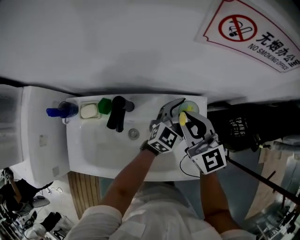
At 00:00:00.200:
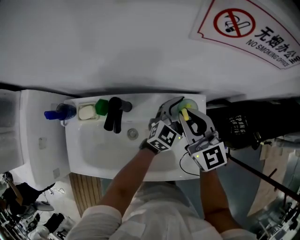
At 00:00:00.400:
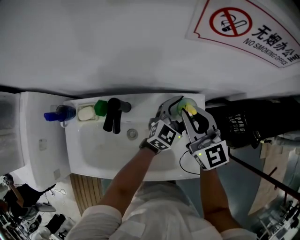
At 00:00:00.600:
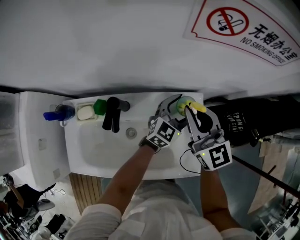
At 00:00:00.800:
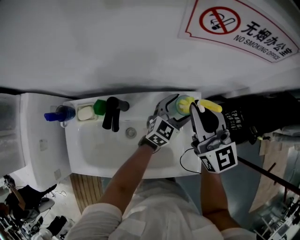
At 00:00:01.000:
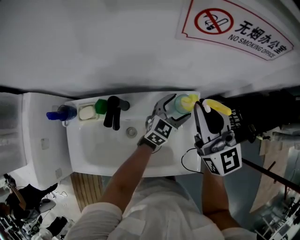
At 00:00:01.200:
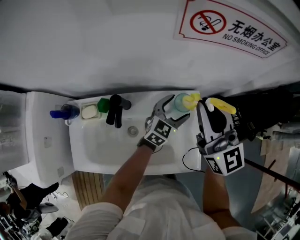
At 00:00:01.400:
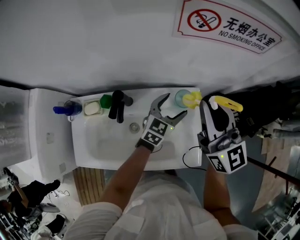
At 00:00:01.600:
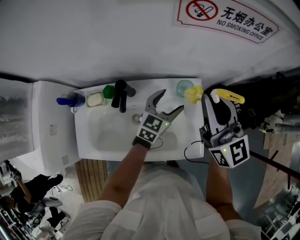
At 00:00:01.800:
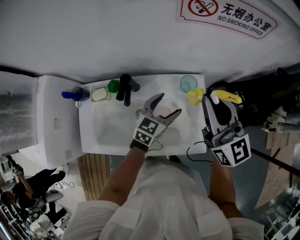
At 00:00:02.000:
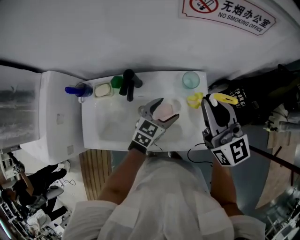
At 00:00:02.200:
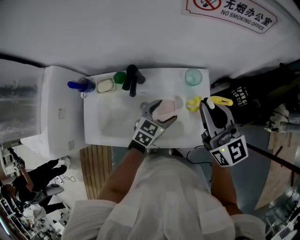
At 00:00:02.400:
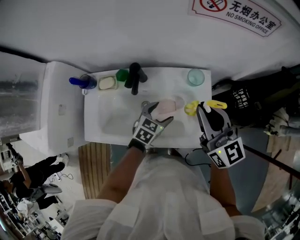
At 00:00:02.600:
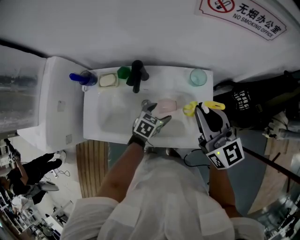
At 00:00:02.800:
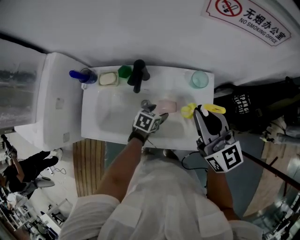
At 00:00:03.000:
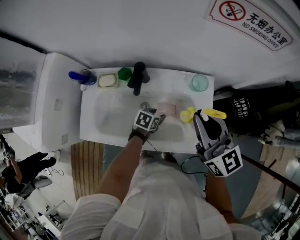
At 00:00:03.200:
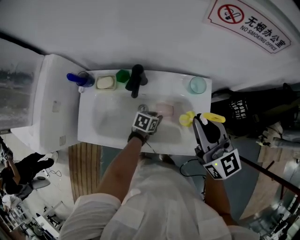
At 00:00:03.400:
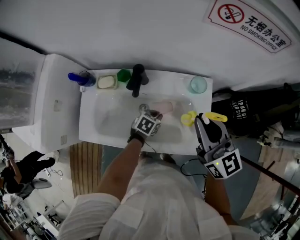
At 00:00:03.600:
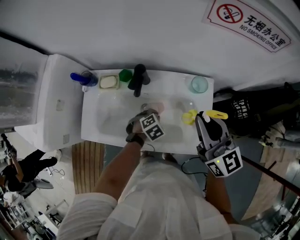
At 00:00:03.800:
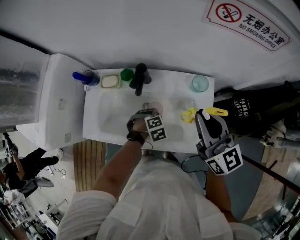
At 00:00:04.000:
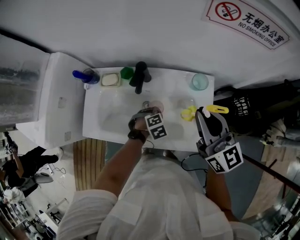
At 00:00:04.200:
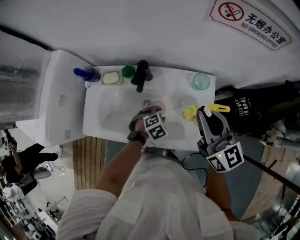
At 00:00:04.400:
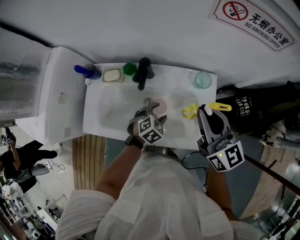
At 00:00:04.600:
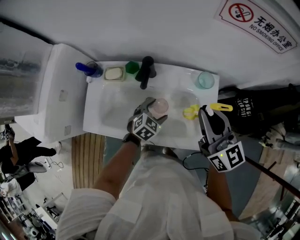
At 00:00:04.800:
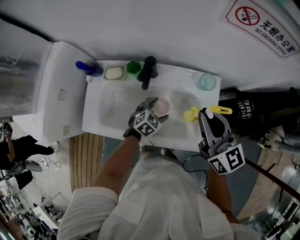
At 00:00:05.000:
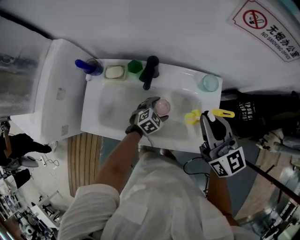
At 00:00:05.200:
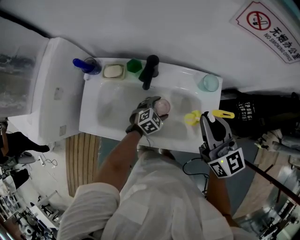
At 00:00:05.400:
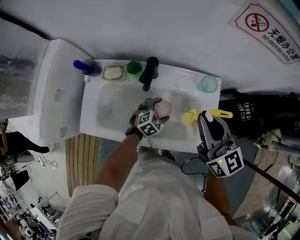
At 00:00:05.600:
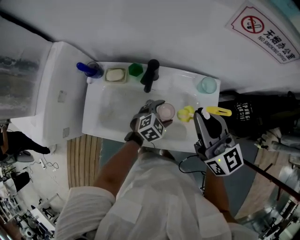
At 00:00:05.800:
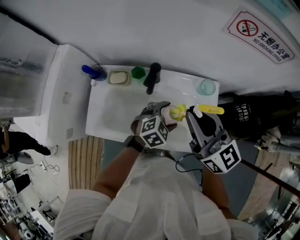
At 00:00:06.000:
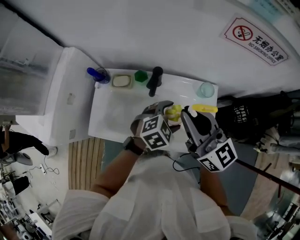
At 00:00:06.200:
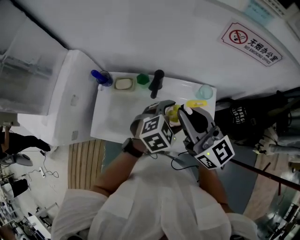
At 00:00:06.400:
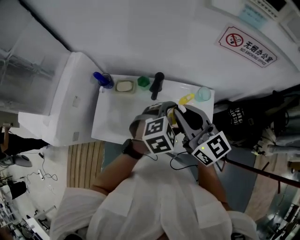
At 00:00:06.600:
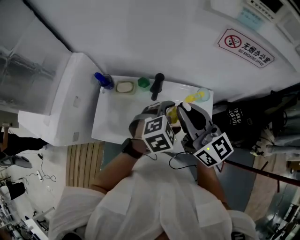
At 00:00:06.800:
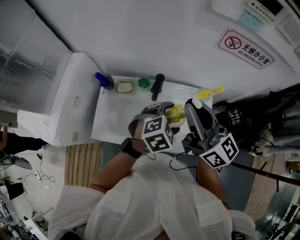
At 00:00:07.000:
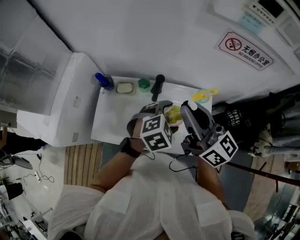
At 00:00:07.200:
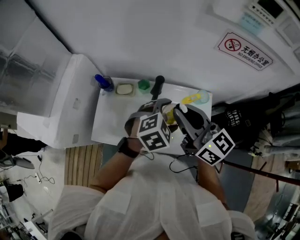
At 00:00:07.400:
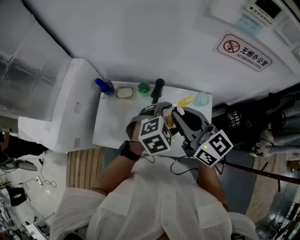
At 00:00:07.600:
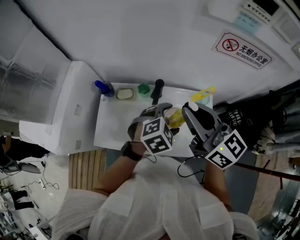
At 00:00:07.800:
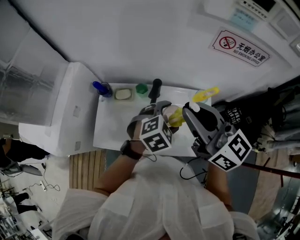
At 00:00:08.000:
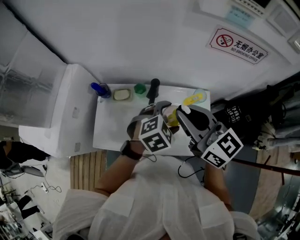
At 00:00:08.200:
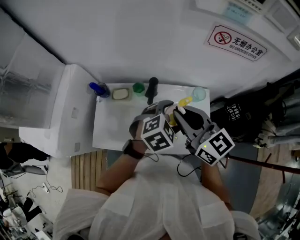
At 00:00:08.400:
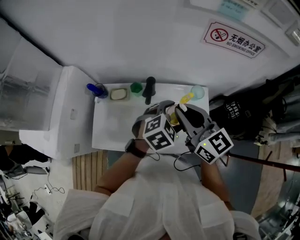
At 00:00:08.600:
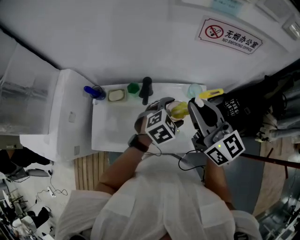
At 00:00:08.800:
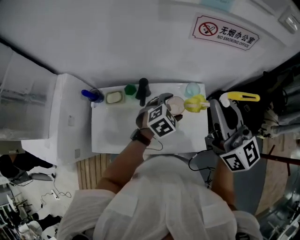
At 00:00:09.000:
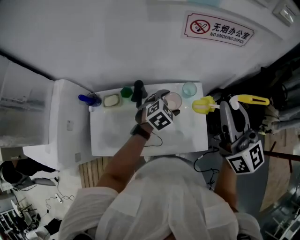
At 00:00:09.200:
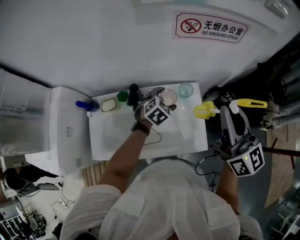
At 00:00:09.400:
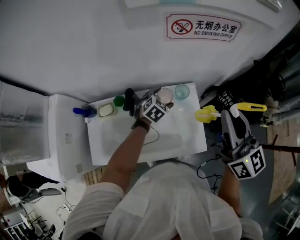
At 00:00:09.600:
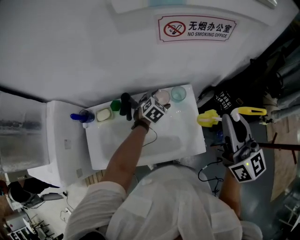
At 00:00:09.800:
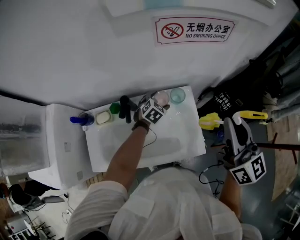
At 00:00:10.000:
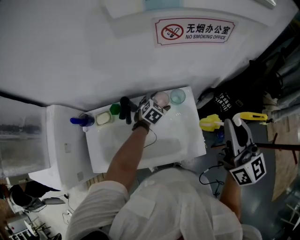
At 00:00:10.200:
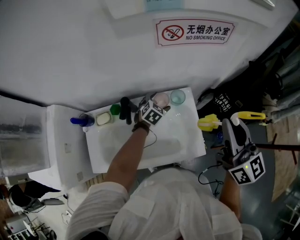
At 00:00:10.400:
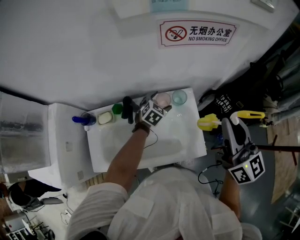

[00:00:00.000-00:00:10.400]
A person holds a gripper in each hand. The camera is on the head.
00:00:00.000 to 00:00:01.400: The right gripper moves upward and to the right, roughly 15 cm, and changes its angle by roughly 20 degrees.
00:00:01.400 to 00:00:03.000: The left gripper moves downward, backward and to the left, some 25 cm, points its fingers some 30 degrees further downward, and closes. The right gripper is displaced backward and to the left by roughly 10 cm.
00:00:03.000 to 00:00:04.400: The left gripper heads upward, covering approximately 5 cm, turns by approximately 40 degrees, and closes and opens again.
00:00:04.400 to 00:00:06.000: The left gripper goes approximately 15 cm upward, and opens its fingers, while the right gripper is displaced to the left and upward by some 10 cm.
00:00:06.000 to 00:00:07.400: The right gripper moves about 5 cm, while the left gripper shifts approximately 10 cm upward.
00:00:07.400 to 00:00:09.000: The left gripper goes about 15 cm downward, forward and to the right. Meanwhile the right gripper heads to the right, covering approximately 20 cm, and changes its angle by some 30 degrees.
00:00:09.000 to 00:00:10.400: The left gripper shifts about 10 cm forward and downward; the right gripper moves to the right, some 5 cm.

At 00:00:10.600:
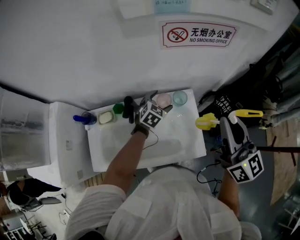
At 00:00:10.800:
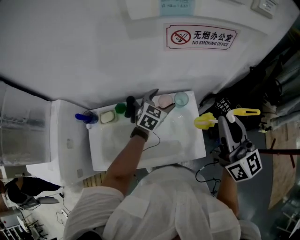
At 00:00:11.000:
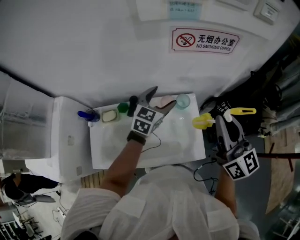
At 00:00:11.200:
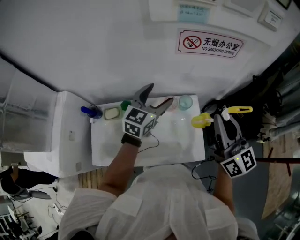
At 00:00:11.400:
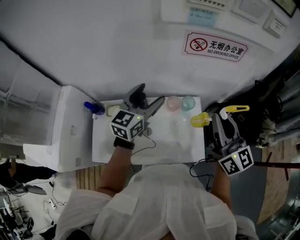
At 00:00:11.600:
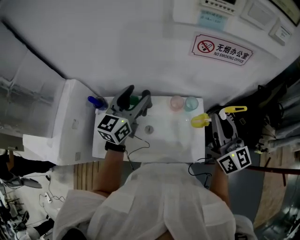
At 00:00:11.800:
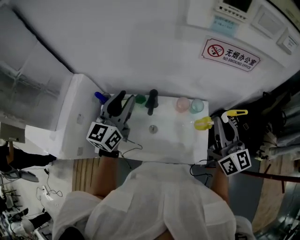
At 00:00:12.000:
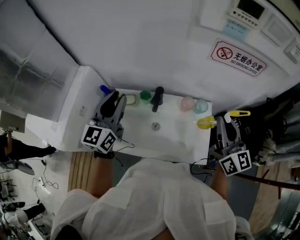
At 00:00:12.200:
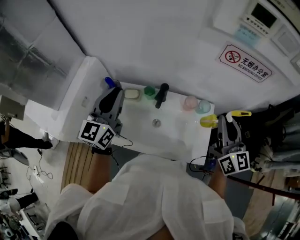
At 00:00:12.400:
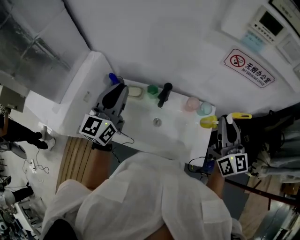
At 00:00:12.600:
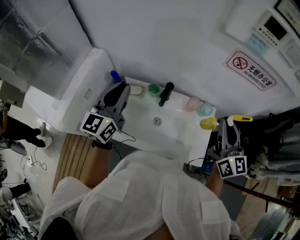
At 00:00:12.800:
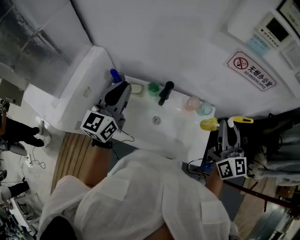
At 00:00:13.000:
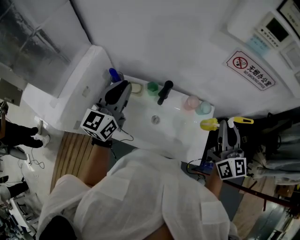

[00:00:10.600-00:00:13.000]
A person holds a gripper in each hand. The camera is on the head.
00:00:10.600 to 00:00:11.800: The right gripper shifts some 5 cm to the left. The left gripper moves upward, to the left and backward, some 40 cm, points its fingers approximately 50 degrees further upward, and closes its fingers.
00:00:11.800 to 00:00:13.000: The left gripper is displaced to the left by some 5 cm.

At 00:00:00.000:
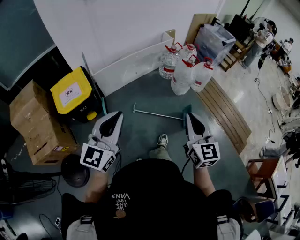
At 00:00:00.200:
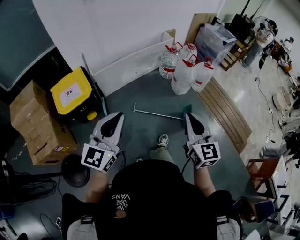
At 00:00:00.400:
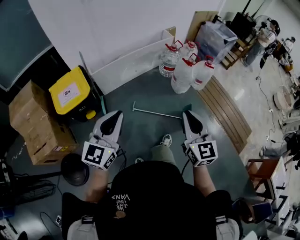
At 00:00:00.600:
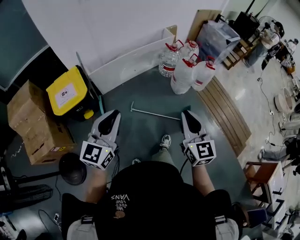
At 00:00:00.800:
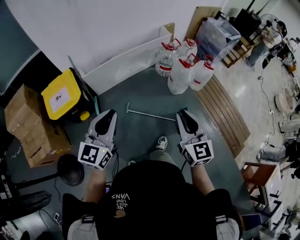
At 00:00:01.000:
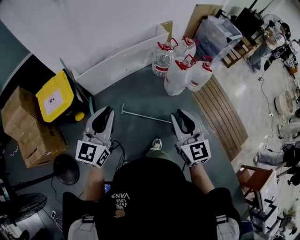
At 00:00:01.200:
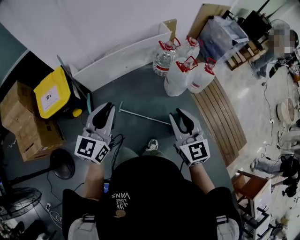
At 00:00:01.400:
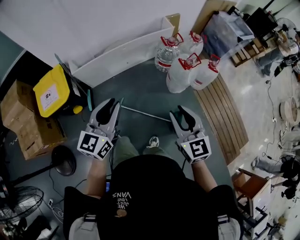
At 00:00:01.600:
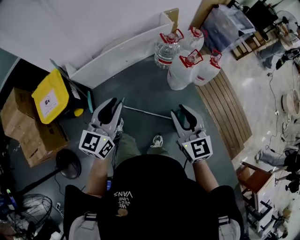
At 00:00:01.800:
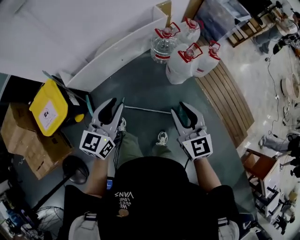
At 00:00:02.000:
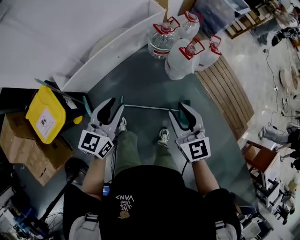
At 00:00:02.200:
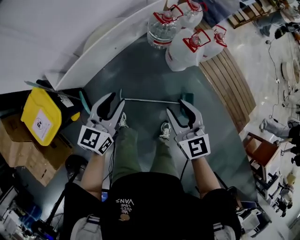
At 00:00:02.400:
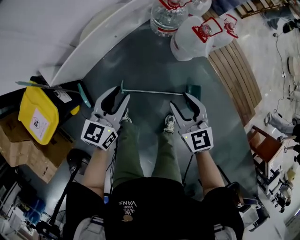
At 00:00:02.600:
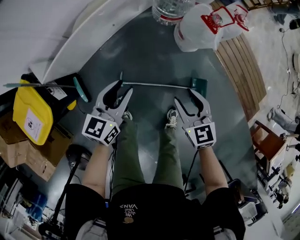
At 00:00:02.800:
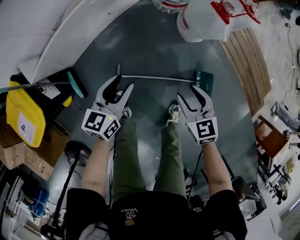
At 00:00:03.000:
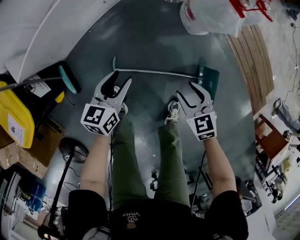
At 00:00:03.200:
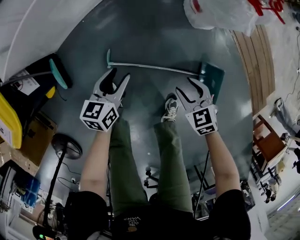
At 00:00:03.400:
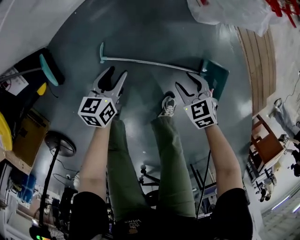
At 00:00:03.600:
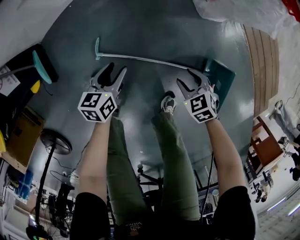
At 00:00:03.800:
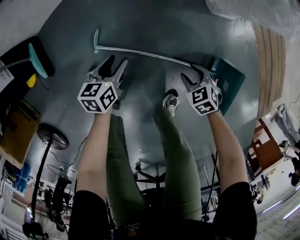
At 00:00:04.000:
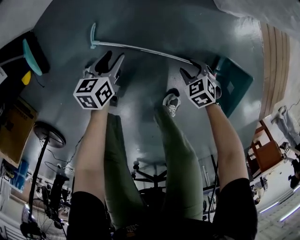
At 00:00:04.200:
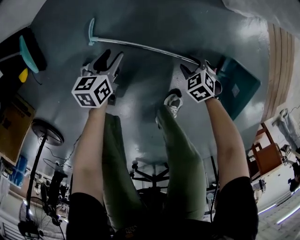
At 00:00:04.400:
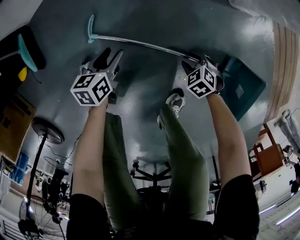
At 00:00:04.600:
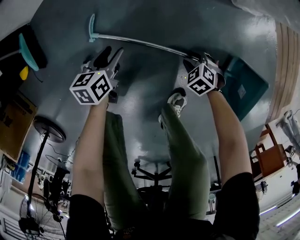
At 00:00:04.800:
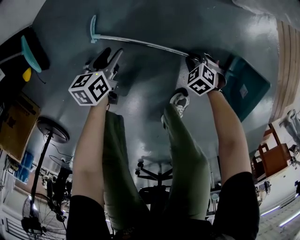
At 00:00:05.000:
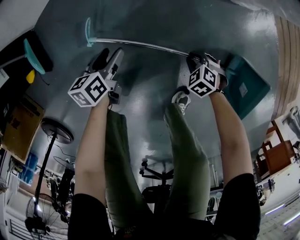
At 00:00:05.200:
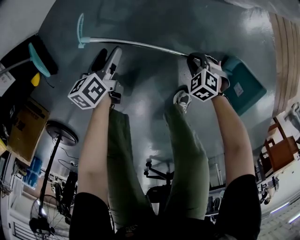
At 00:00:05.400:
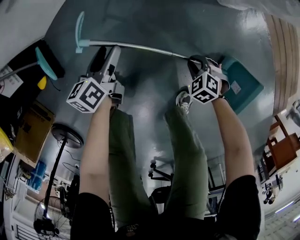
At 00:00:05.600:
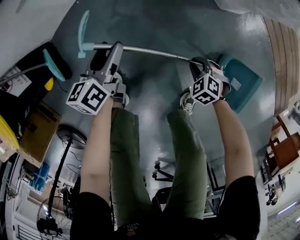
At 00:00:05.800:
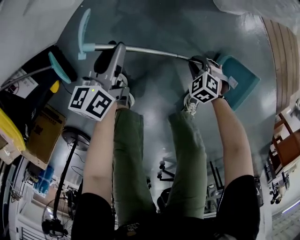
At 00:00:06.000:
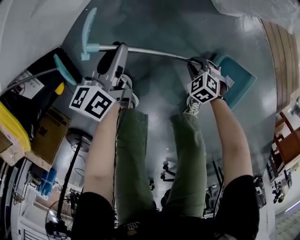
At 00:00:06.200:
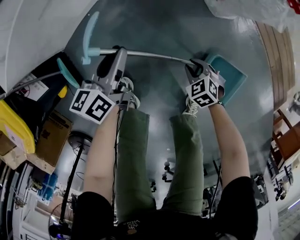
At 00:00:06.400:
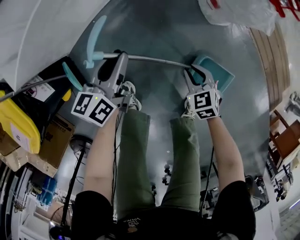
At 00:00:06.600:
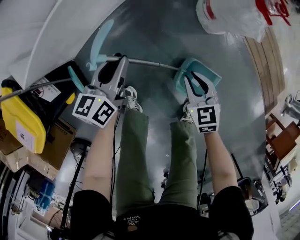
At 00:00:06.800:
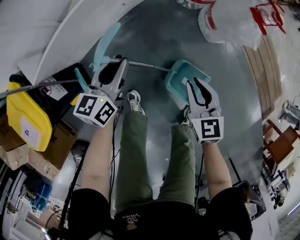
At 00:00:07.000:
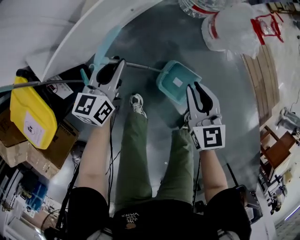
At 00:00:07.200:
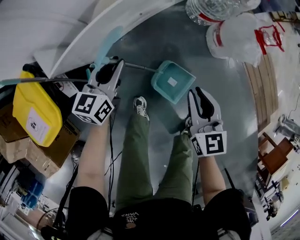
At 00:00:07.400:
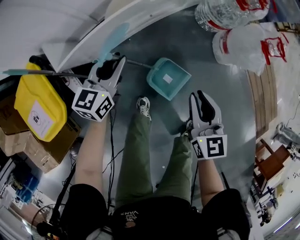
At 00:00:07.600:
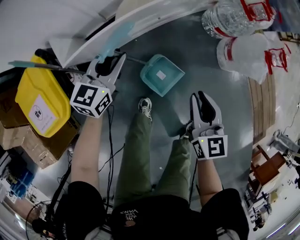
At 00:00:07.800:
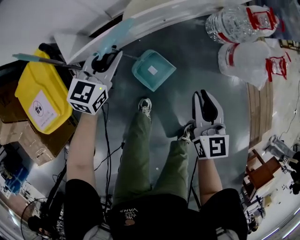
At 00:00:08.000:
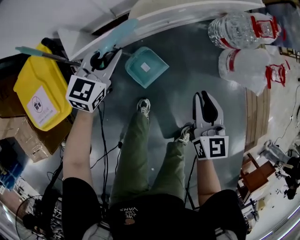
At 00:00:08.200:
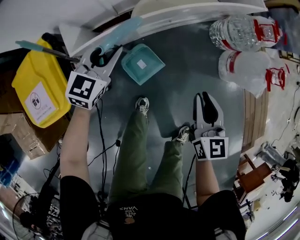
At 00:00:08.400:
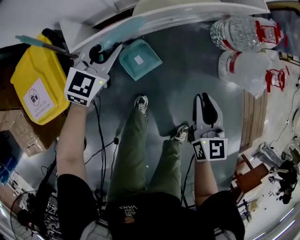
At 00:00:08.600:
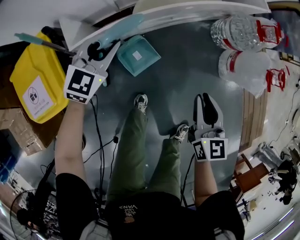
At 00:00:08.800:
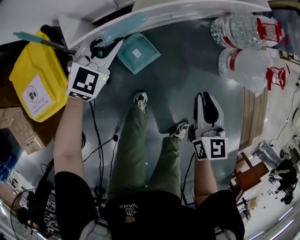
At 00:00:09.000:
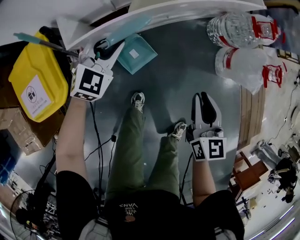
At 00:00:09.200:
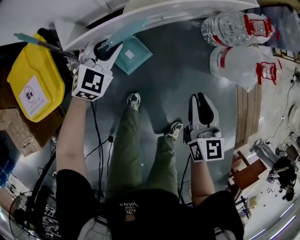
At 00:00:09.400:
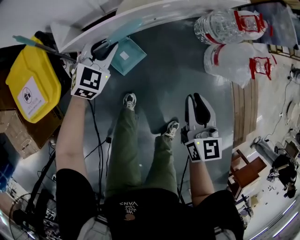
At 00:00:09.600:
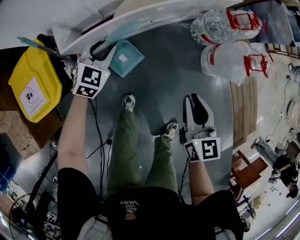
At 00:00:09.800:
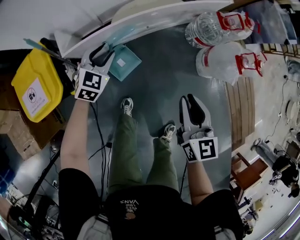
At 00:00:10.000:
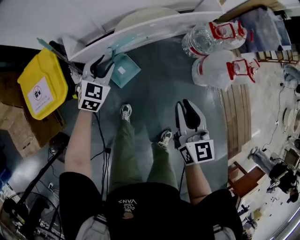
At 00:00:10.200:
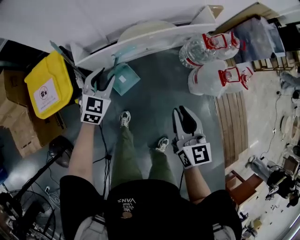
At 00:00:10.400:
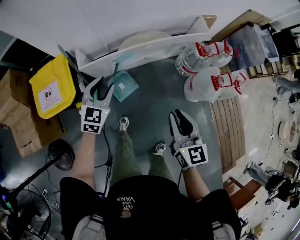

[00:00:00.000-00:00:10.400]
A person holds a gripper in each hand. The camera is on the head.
00:00:00.000 to 00:00:01.400: The left gripper is displaced forward and to the right by approximately 30 cm; the right gripper goes about 30 cm forward, rotates some 20 degrees, and opens.
00:00:01.400 to 00:00:03.000: The two grippers go about 50 cm downward. The left gripper swivels some 40 degrees, and opens its fingers. Meanwhile the right gripper angles its fingers downward, by some 30 degrees.
00:00:03.000 to 00:00:04.400: Both grippers travel together downward, approximately 40 cm. The left gripper turns by approximately 30 degrees, while the right gripper rotates some 40 degrees.
00:00:04.400 to 00:00:06.000: The right gripper shifts about 15 cm upward, and closes its fingers; the left gripper travels upward by about 25 cm, and rotates roughly 20 degrees.
00:00:06.000 to 00:00:07.400: The right gripper travels upward by about 50 cm, and tips its fingers upward by approximately 50 degrees, while the left gripper moves upward and to the left, some 30 cm, and turns by about 30 degrees.
00:00:07.400 to 00:00:09.000: The right gripper moves roughly 5 cm; the left gripper goes about 10 cm to the left, and changes its angle by roughly 40 degrees.
00:00:09.000 to 00:00:10.400: The grippers both shift upward and backward by approximately 25 cm. The left gripper changes its angle by approximately 20 degrees.
